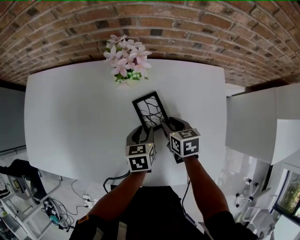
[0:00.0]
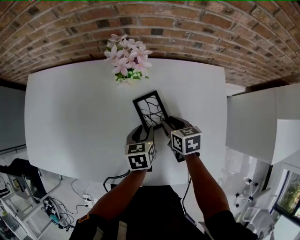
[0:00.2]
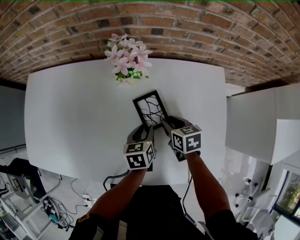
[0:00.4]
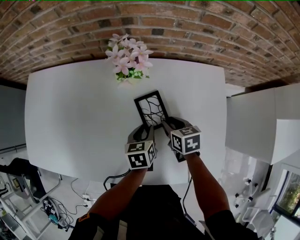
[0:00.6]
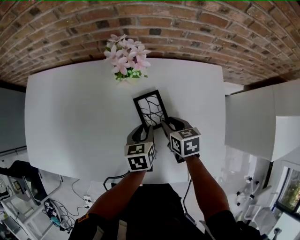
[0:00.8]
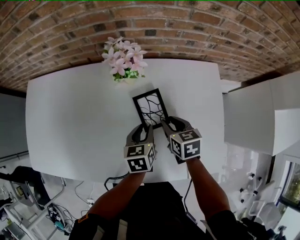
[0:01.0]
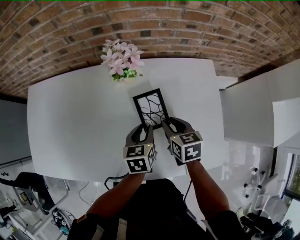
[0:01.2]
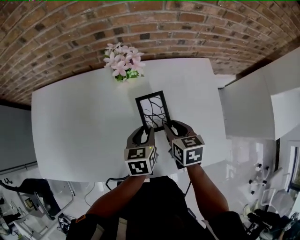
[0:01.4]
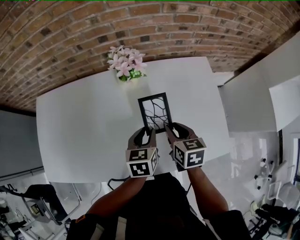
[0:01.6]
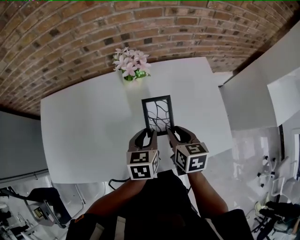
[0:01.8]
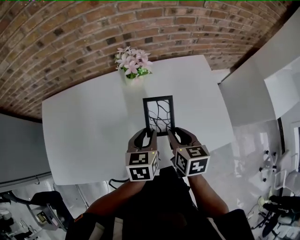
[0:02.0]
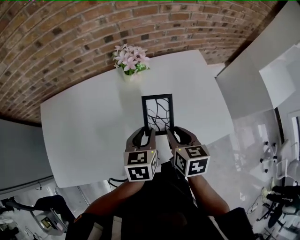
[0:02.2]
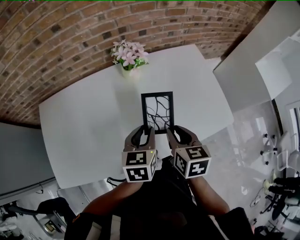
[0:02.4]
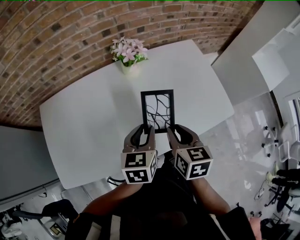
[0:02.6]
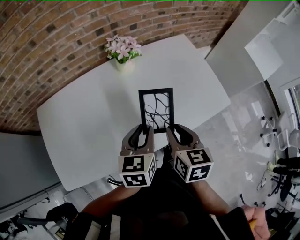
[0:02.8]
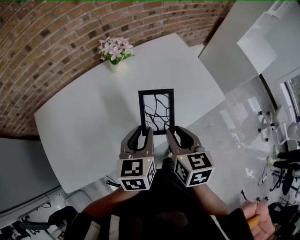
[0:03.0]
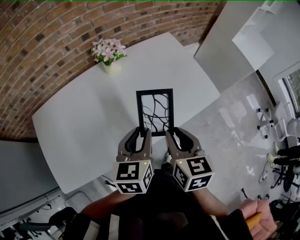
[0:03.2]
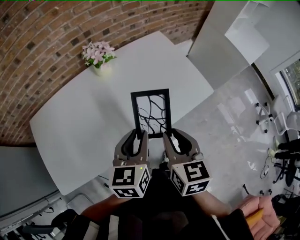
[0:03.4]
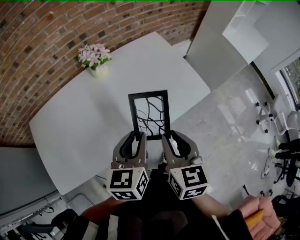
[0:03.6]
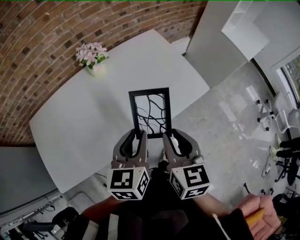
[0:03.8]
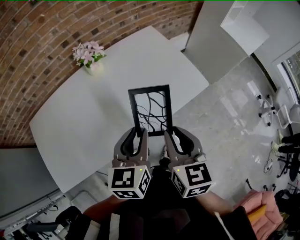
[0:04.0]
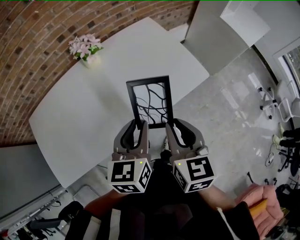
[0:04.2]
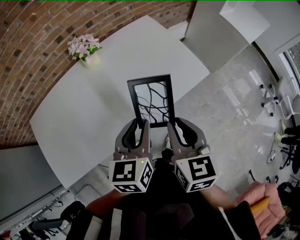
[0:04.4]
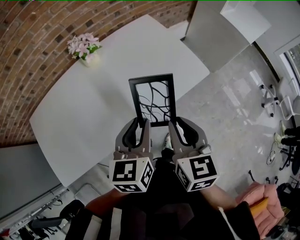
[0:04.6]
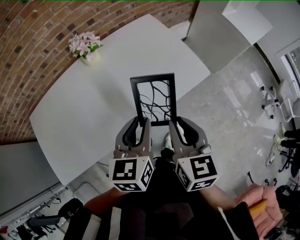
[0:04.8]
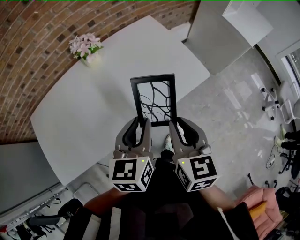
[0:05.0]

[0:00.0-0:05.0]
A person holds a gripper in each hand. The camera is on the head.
0:00.0 to 0:01.6: The left gripper heads upward, covering approximately 10 cm. The right gripper moves upward and backward, some 15 cm.
0:01.6 to 0:03.4: The left gripper changes place by some 25 cm, and rotates roughly 30 degrees; the right gripper changes place by some 30 cm, and swivels approximately 30 degrees.
0:03.4 to 0:05.0: The grippers both shift to the right by some 5 cm.

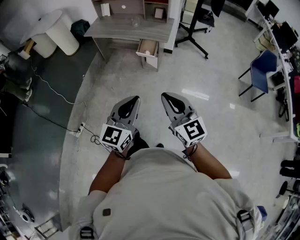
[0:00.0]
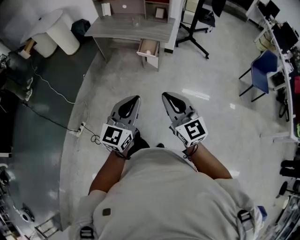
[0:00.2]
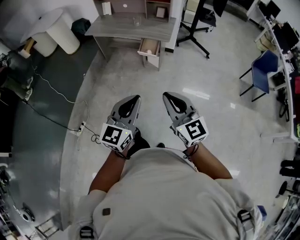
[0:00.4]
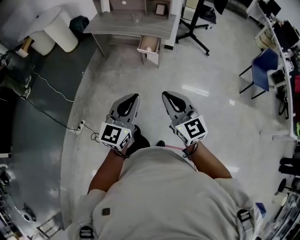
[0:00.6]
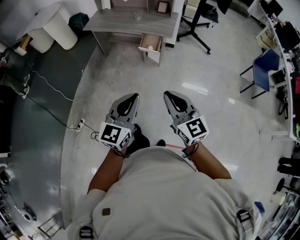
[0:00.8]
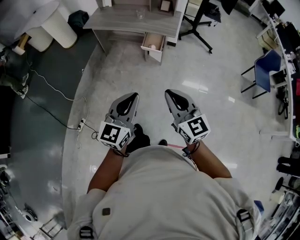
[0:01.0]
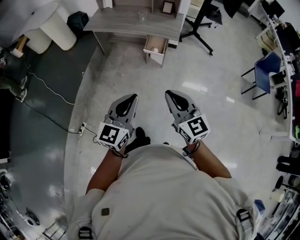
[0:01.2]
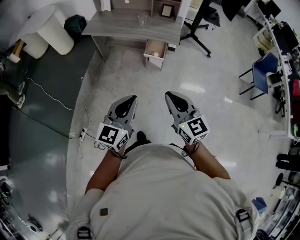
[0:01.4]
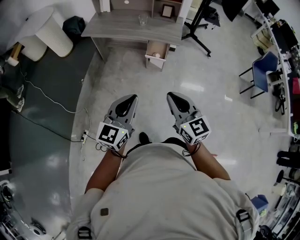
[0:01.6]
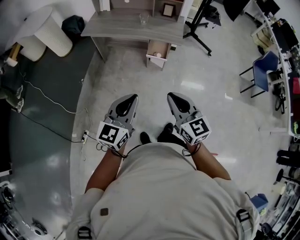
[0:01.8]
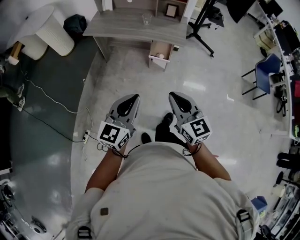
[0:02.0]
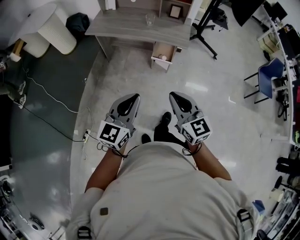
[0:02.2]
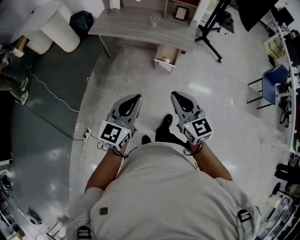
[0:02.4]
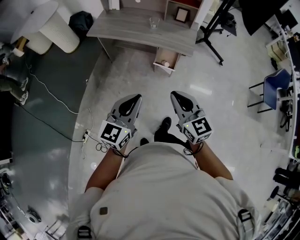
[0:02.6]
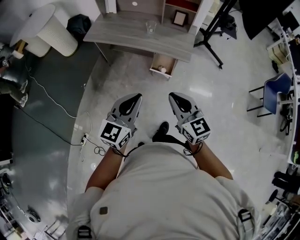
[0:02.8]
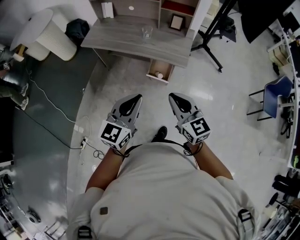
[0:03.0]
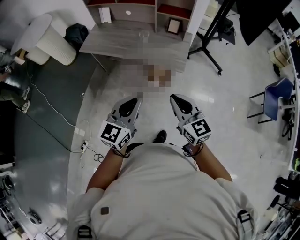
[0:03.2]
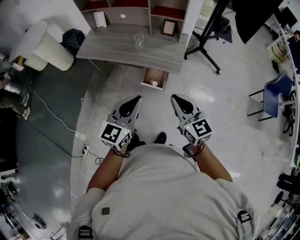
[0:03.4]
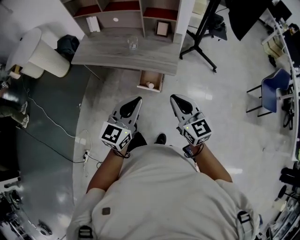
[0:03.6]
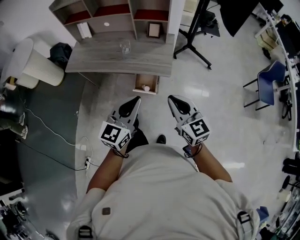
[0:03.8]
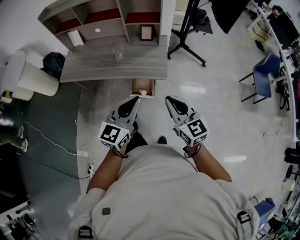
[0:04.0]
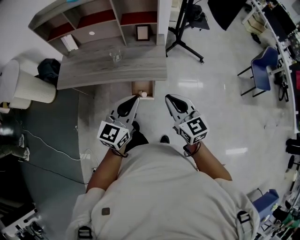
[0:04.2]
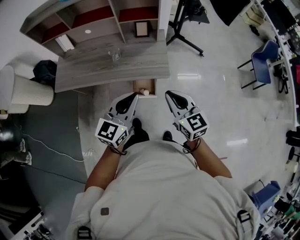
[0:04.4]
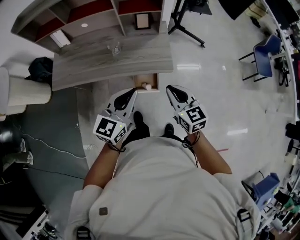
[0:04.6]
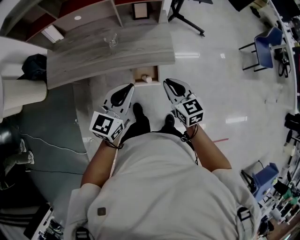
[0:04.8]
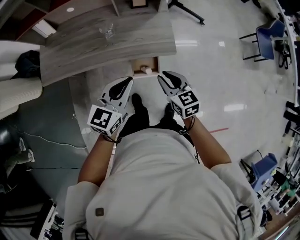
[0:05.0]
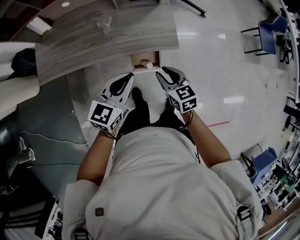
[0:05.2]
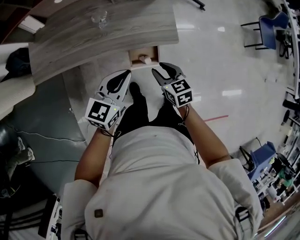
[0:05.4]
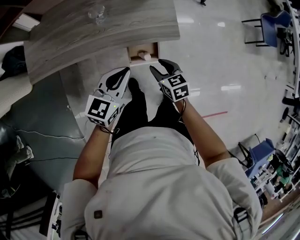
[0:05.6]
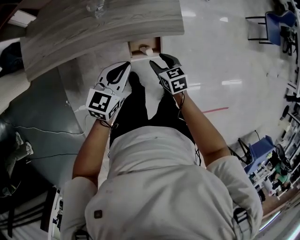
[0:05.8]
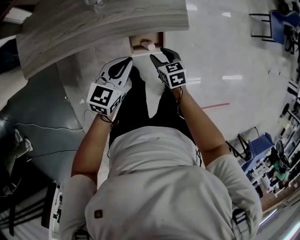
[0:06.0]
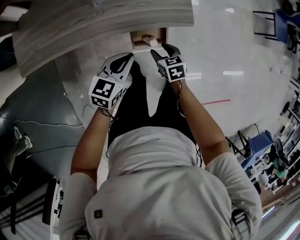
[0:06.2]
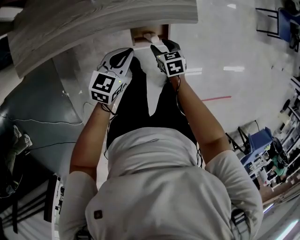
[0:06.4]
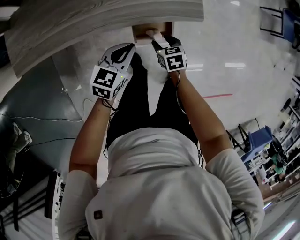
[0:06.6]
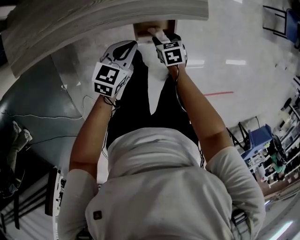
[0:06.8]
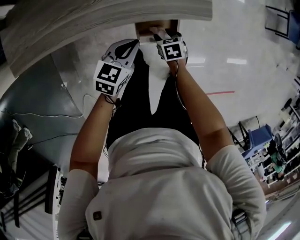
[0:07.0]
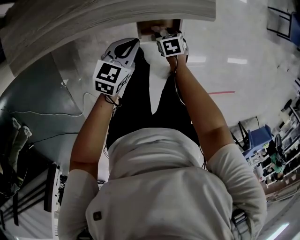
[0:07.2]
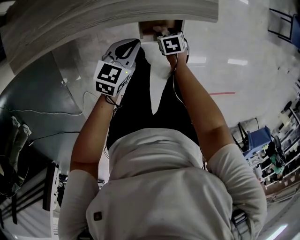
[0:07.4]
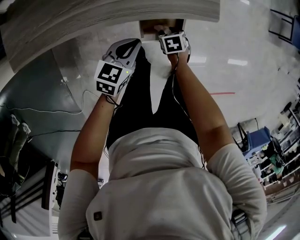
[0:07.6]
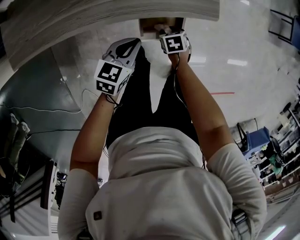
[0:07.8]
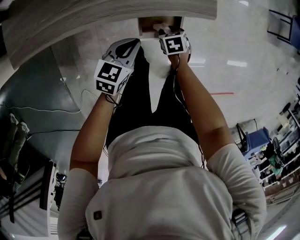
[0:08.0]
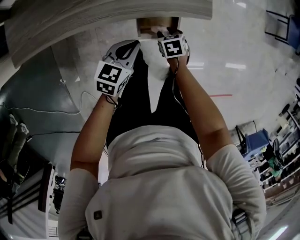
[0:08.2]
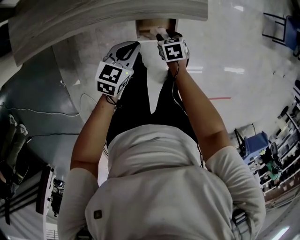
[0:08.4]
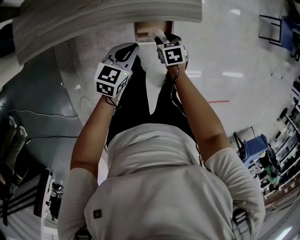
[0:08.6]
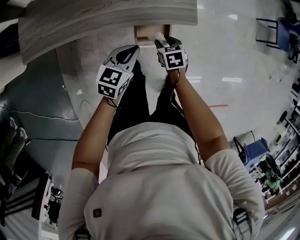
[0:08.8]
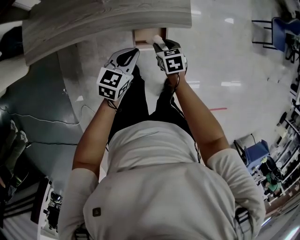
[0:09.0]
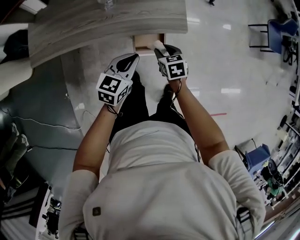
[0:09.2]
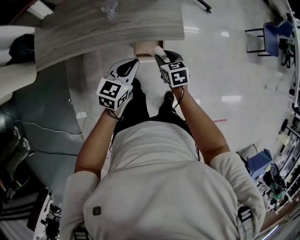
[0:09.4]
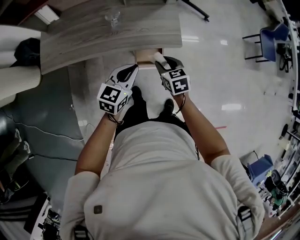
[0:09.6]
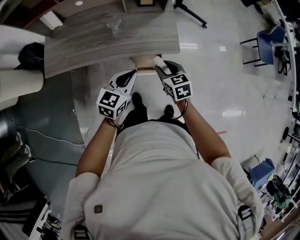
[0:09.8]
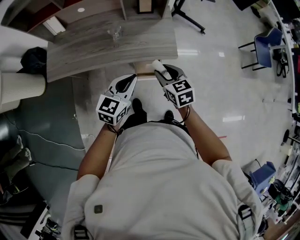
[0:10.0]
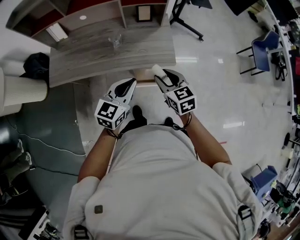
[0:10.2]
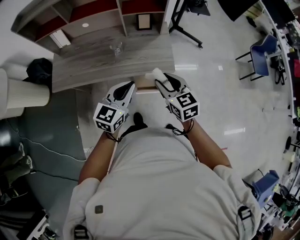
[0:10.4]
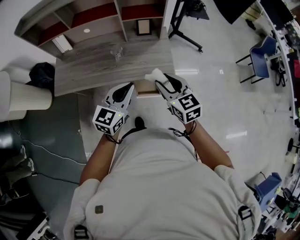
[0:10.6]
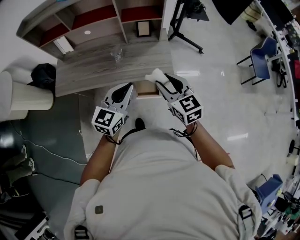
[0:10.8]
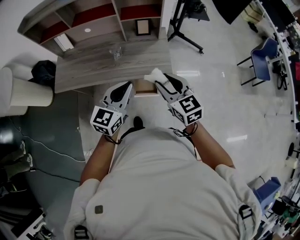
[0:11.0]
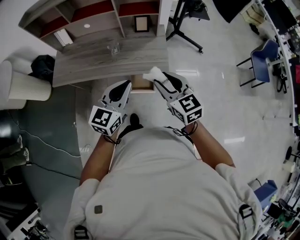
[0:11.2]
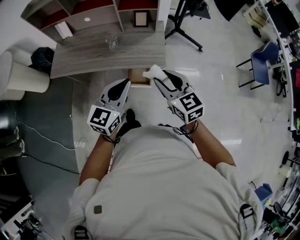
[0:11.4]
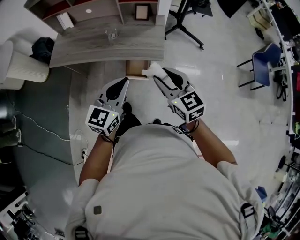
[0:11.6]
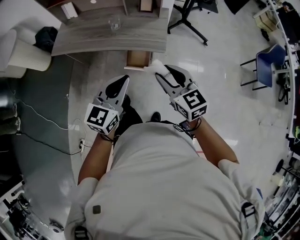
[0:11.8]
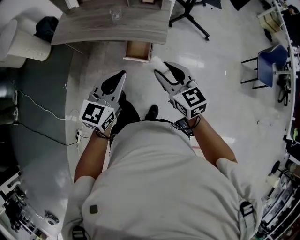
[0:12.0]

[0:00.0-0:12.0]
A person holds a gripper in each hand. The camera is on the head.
0:00.0 to 0:01.6: The left gripper travels to the left and forward by some 25 cm, while the right gripper heads forward and to the left, covering approximately 25 cm.
0:01.6 to 0:03.0: The grippers both shift forward by roughly 25 cm.
0:03.0 to 0:04.4: Both grippers travel together forward, roughly 20 cm. The right gripper changes its angle by some 20 degrees.
0:04.4 to 0:06.0: The grippers both shift downward by about 30 cm. The left gripper swivels roughly 30 degrees; the right gripper tips its fingers downward by approximately 40 degrees, and opens.
0:06.0 to 0:07.6: The two grippers go some 20 cm downward.
0:07.6 to 0:09.0: Both grippers move upward, some 15 cm.
0:09.0 to 0:10.4: The two grippers go roughly 30 cm upward. The right gripper tips its fingers upward by approximately 30 degrees.
0:10.4 to 0:12.0: Both grippers move backward and to the right, approximately 20 cm.

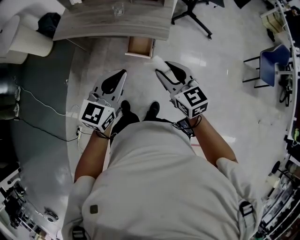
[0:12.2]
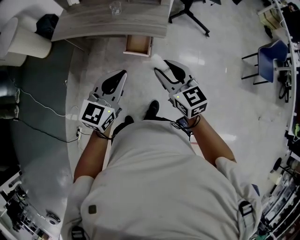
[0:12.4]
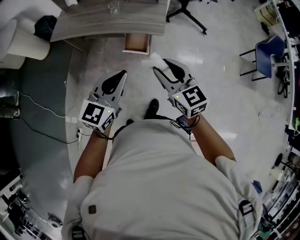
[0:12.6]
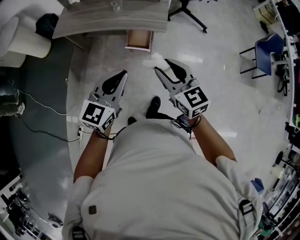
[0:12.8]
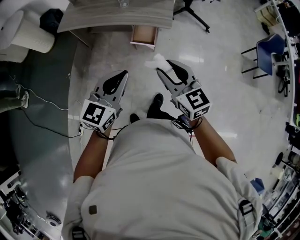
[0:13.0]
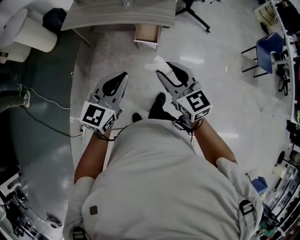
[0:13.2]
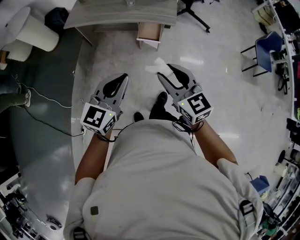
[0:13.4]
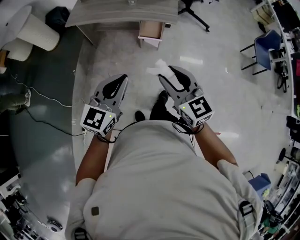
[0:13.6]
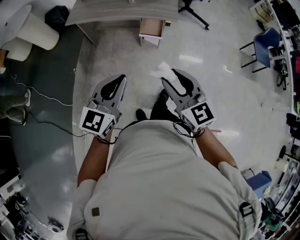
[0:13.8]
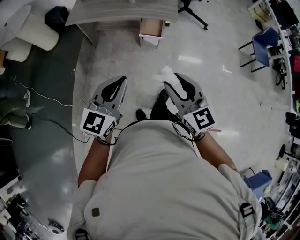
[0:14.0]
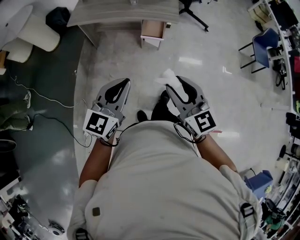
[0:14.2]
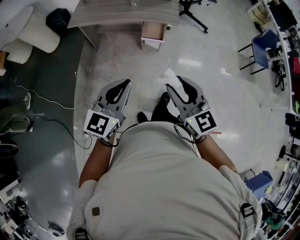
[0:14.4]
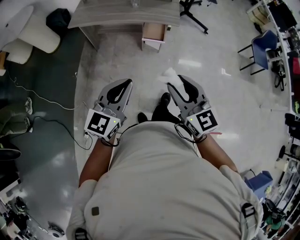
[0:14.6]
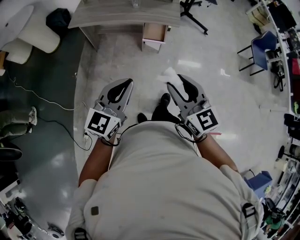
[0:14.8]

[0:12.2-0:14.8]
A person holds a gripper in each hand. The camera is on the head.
0:12.2 to 0:13.4: Both grippers move backward and to the left, about 25 cm.
0:13.4 to 0:14.8: The right gripper is displaced backward and to the left by roughly 10 cm. Meanwhile the left gripper travels to the left and backward by about 10 cm.

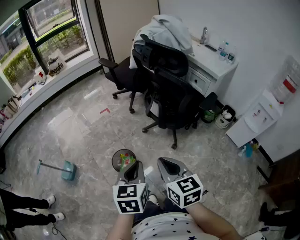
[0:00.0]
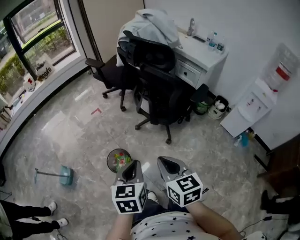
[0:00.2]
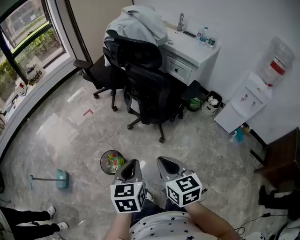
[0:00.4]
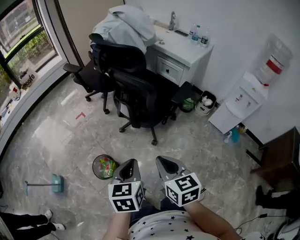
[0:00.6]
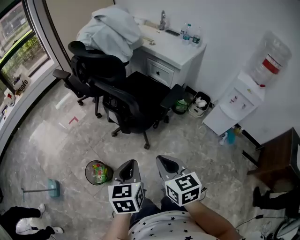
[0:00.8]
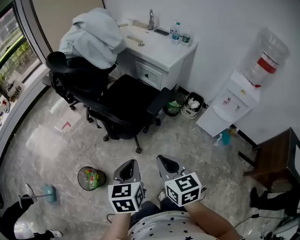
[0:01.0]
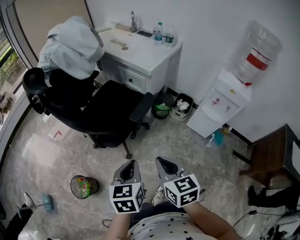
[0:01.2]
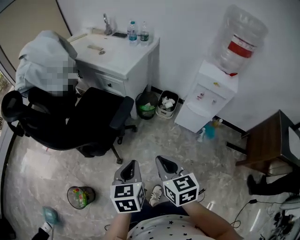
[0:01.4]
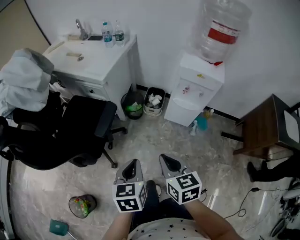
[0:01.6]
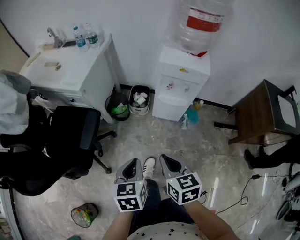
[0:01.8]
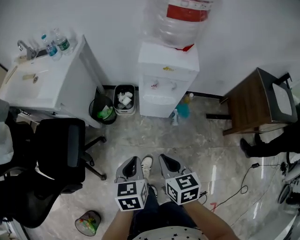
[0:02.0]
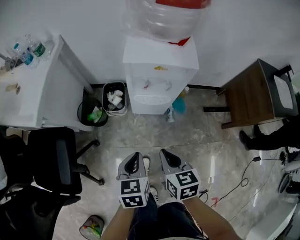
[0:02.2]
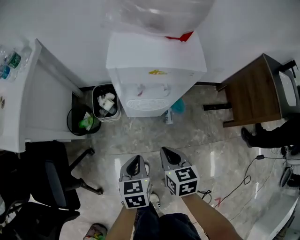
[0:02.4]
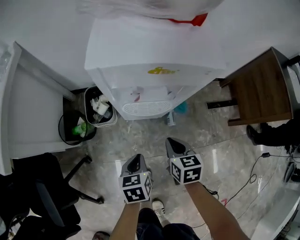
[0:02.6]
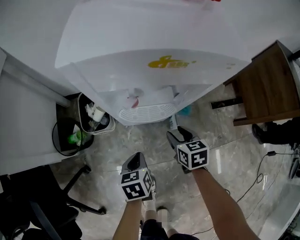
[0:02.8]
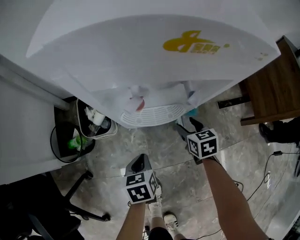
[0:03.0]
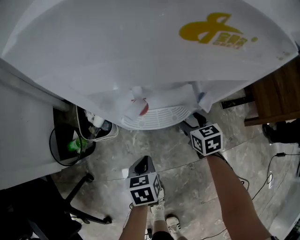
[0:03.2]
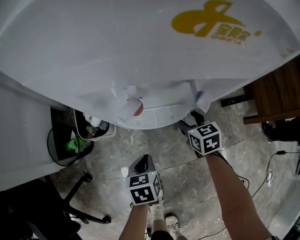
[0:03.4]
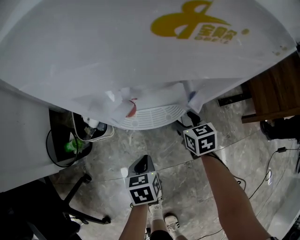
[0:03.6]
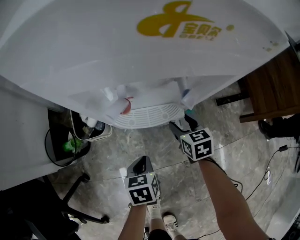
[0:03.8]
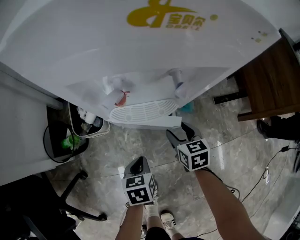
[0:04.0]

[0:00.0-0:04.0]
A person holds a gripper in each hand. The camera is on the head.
0:00.0 to 0:01.4: The pair of grippers is taken to the right and forward, about 50 cm. The right gripper turns by approximately 30 degrees. Meanwhile the left gripper changes its angle by about 20 degrees.
0:01.4 to 0:02.6: The pair of grippers is taken about 50 cm. The left gripper rotates some 40 degrees. Meanwhile the right gripper rotates about 40 degrees.
0:02.6 to 0:04.0: The right gripper is displaced downward and forward by approximately 15 cm, and opens its fingers. Meanwhile the left gripper heads downward, covering approximately 15 cm.
